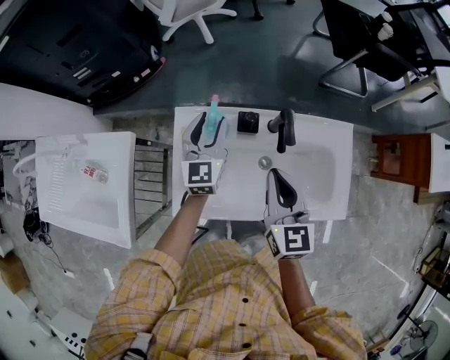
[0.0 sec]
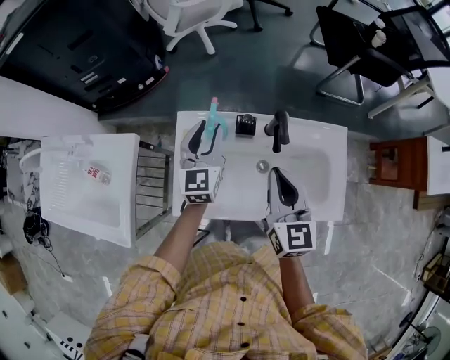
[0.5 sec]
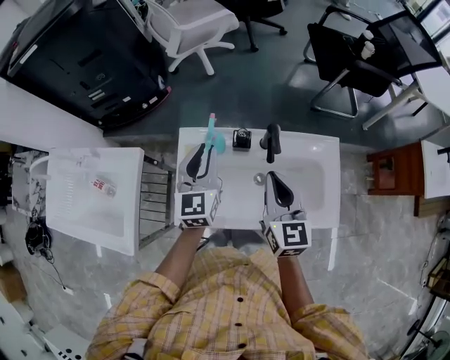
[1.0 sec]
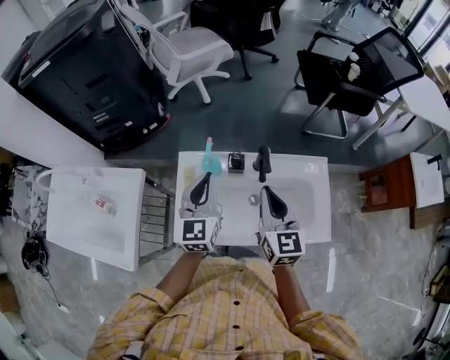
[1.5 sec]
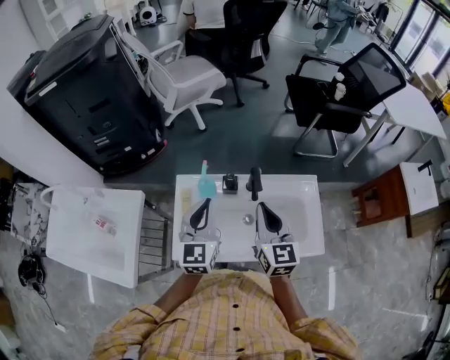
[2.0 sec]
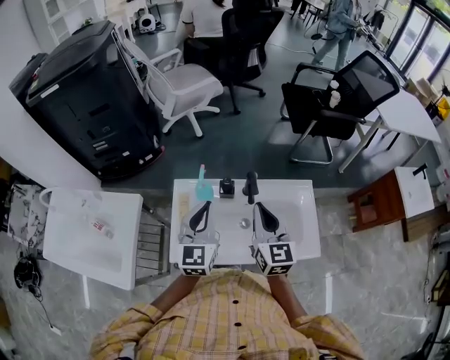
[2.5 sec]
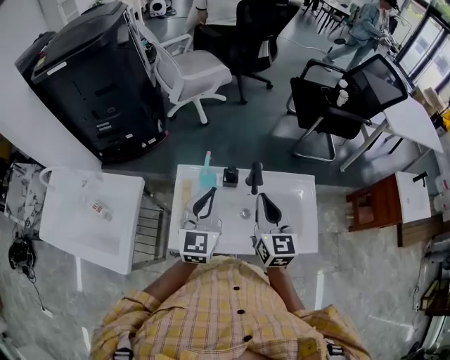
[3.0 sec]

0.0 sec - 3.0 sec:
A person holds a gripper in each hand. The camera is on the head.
0.0 sec - 1.5 sec: The right gripper is displaced upward by approximately 5 cm, while the left gripper is displaced upward and backward by approximately 15 cm, and closes up.
1.5 sec - 3.0 sec: The left gripper shifts by approximately 5 cm.

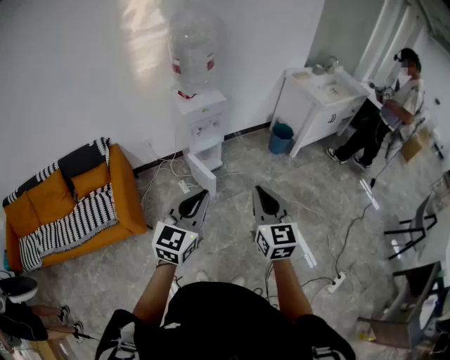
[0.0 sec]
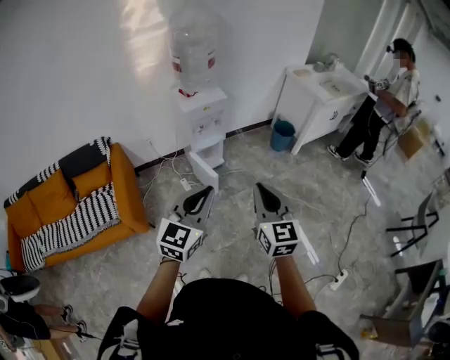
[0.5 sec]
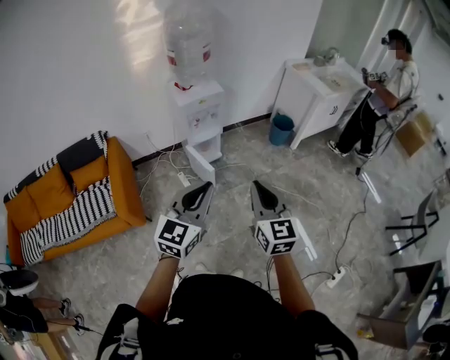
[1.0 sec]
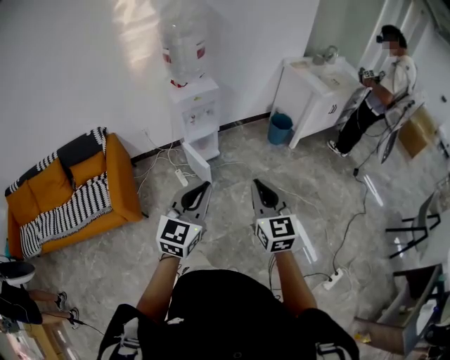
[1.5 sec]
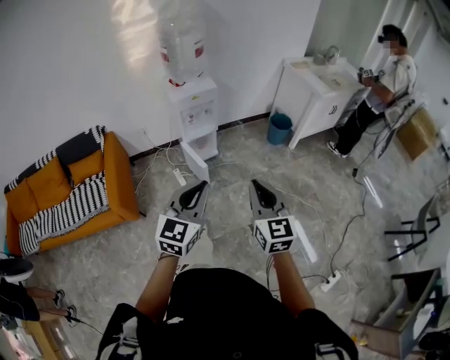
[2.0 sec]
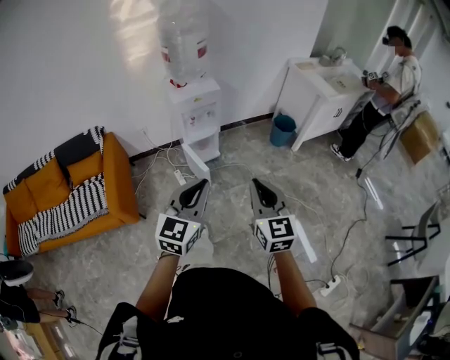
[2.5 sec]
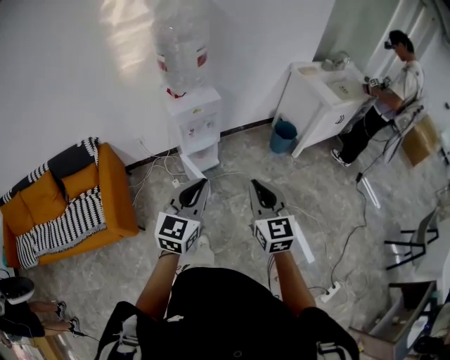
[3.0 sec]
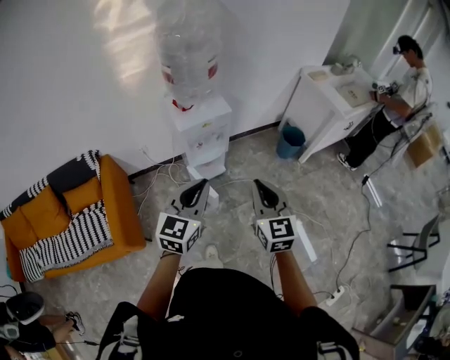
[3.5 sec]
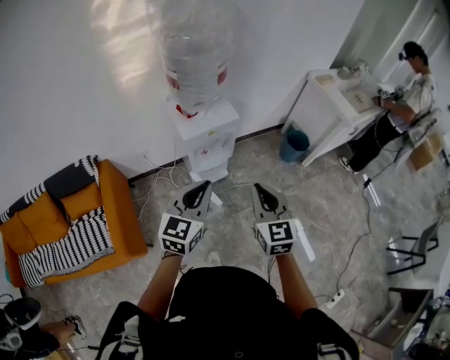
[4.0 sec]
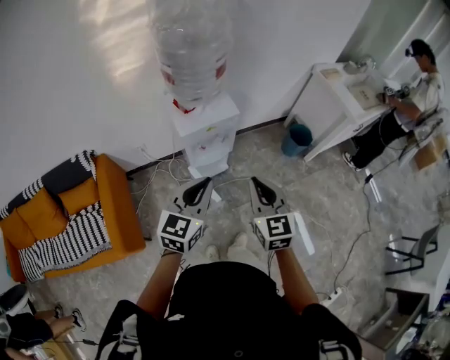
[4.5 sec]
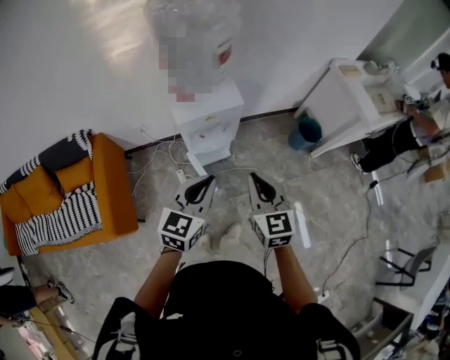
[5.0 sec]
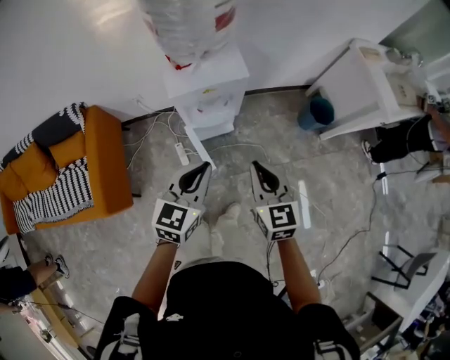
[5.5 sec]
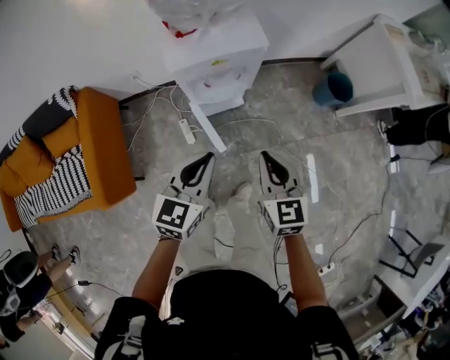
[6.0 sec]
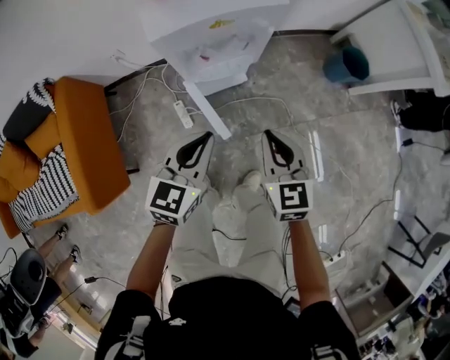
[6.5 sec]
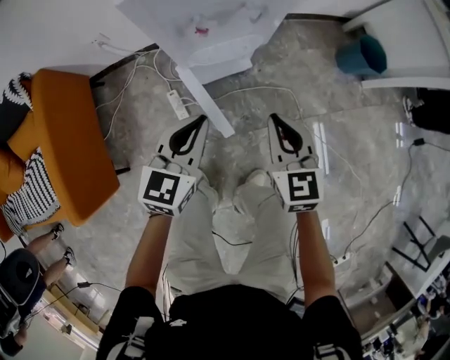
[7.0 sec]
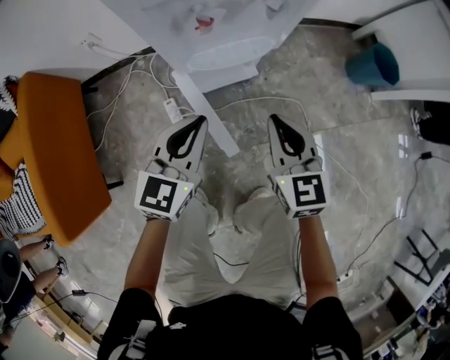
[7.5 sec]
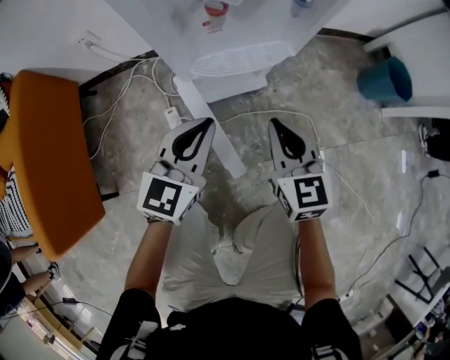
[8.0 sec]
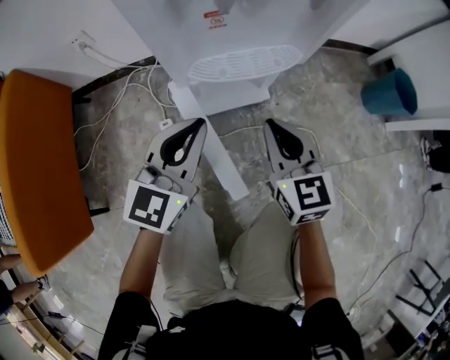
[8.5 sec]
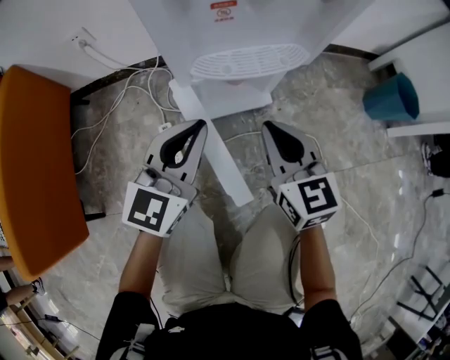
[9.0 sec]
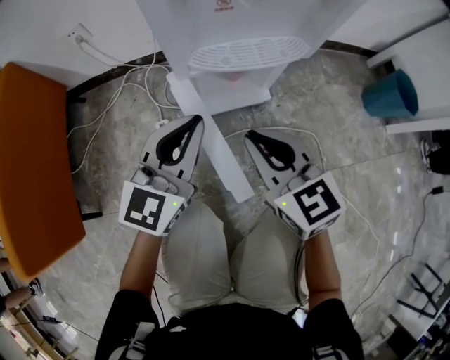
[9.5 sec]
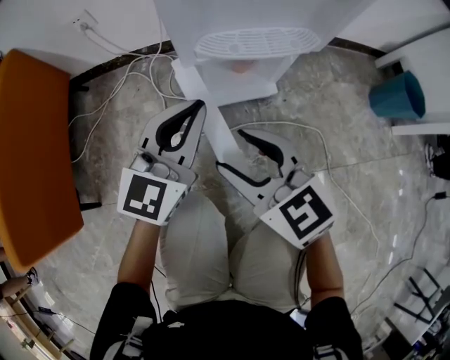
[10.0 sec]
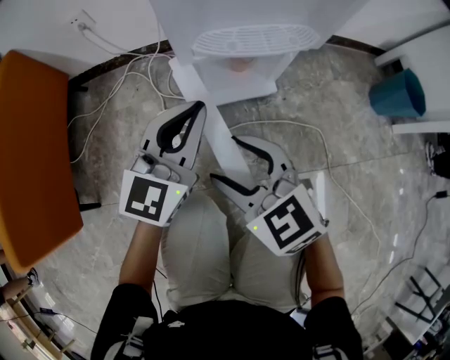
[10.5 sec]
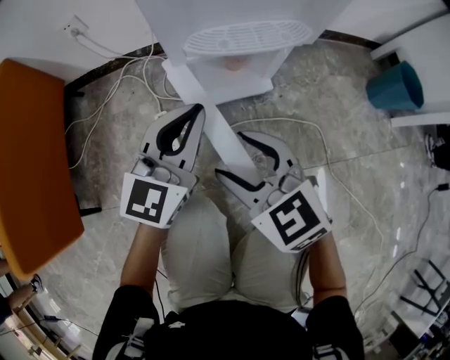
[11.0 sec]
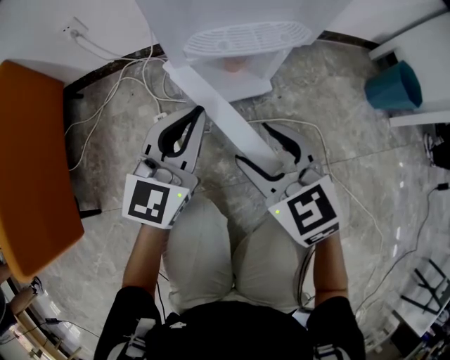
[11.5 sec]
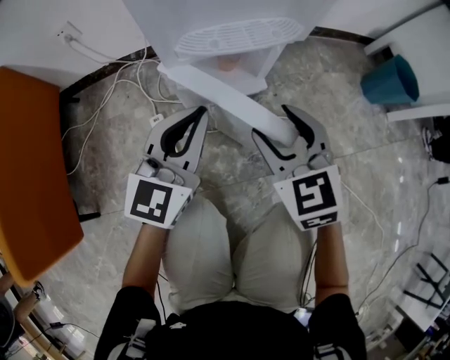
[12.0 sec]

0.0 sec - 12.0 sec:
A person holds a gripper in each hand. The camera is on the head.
0.0 sec - 2.0 sec: Both grippers travel together to the right, some 10 cm.
2.0 sec - 4.0 sec: Both grippers move forward and to the left, roughly 35 cm.
4.0 sec - 6.0 sec: The right gripper heads downward and forward, covering some 25 cm. The left gripper is displaced downward by about 20 cm.
6.0 sec - 8.0 sec: The grippers both shift downward by about 40 cm.
8.0 sec - 10.0 sec: The left gripper ends up roughly 5 cm from where it was. Meanwhile the right gripper shifts about 10 cm to the left, swivels about 30 degrees, and opens up.
10.0 sec - 12.0 sec: The right gripper goes about 10 cm to the right, and turns by some 30 degrees.

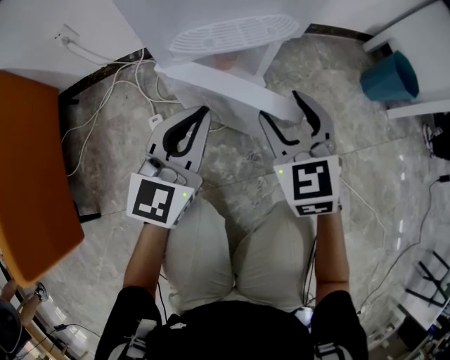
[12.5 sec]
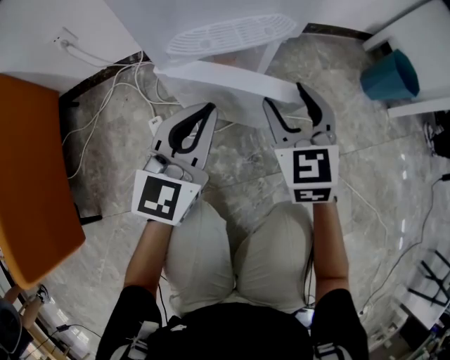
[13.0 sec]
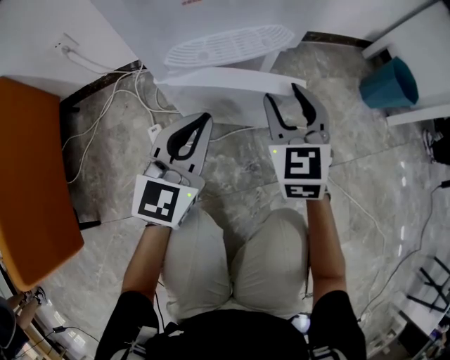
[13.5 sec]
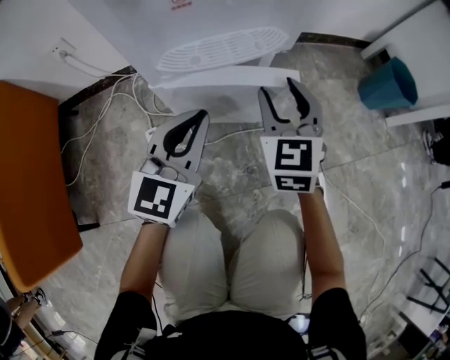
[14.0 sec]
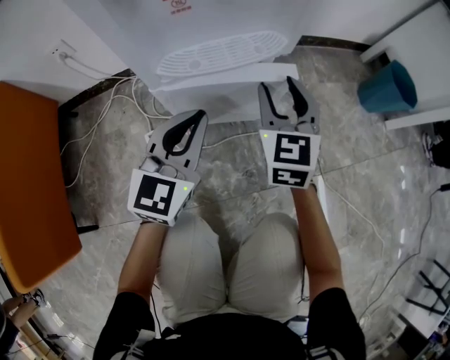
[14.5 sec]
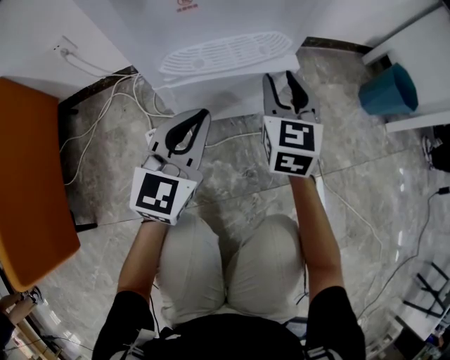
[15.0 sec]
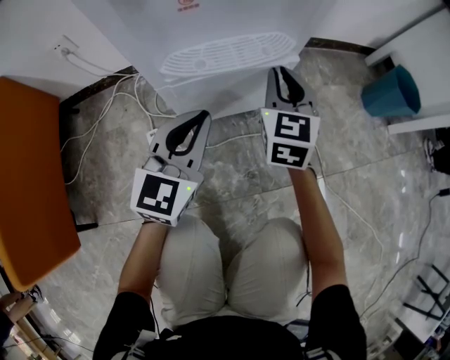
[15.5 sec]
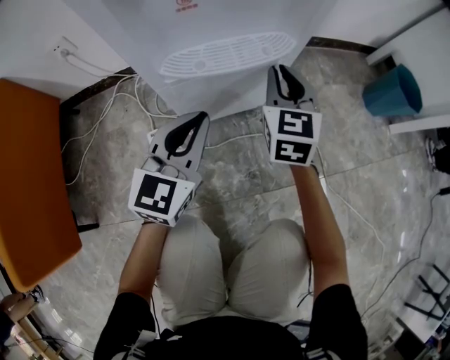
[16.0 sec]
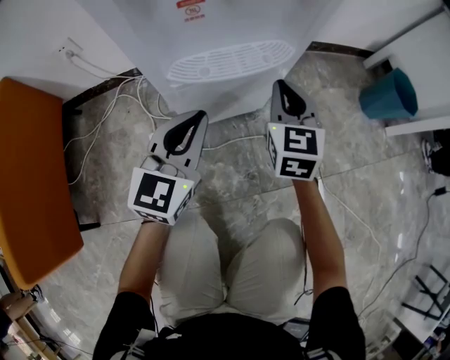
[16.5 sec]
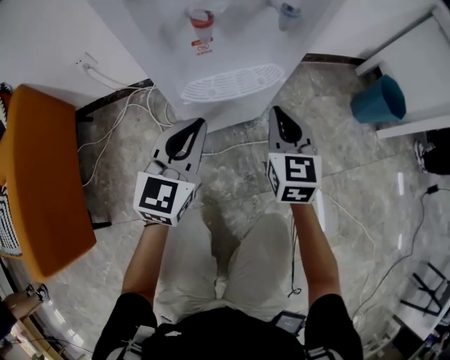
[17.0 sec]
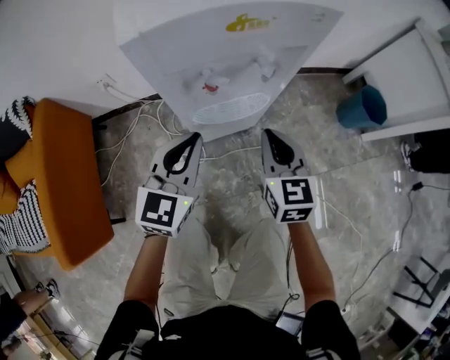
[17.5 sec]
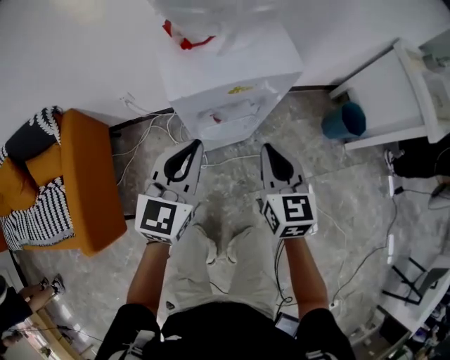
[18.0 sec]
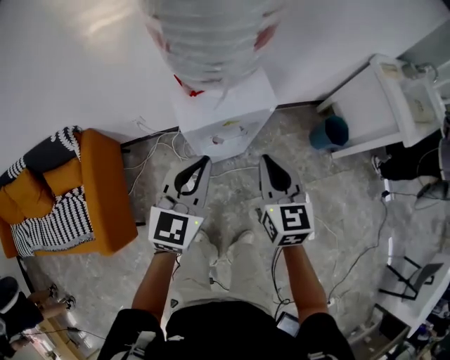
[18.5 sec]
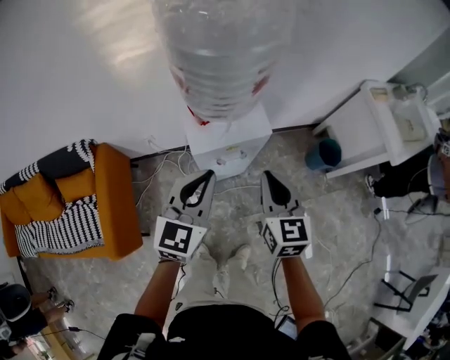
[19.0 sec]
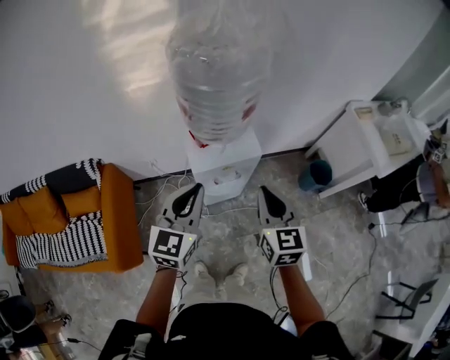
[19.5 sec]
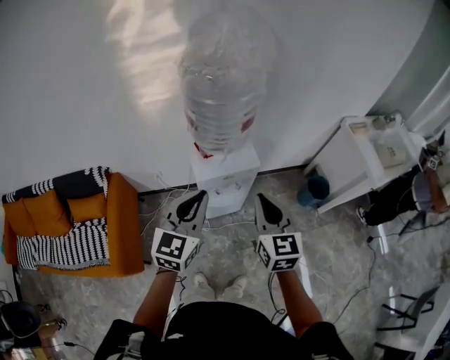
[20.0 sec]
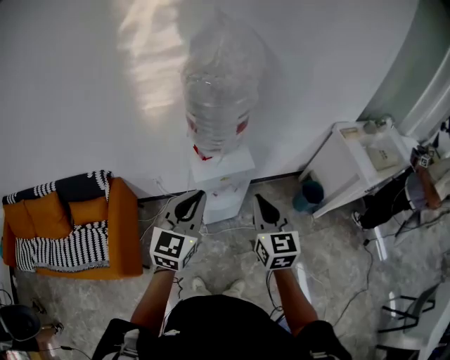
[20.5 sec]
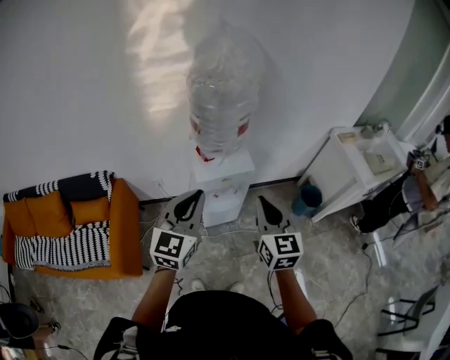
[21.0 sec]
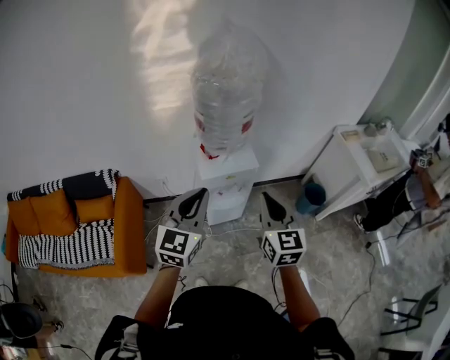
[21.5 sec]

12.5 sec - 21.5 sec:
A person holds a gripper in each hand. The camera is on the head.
12.5 sec - 14.5 sec: The right gripper moves forward, some 10 cm.
14.5 sec - 17.0 sec: The left gripper goes about 5 cm upward. Meanwhile the right gripper ends up about 5 cm from where it was, and closes up.
17.0 sec - 19.5 sec: Both grippers move upward, about 60 cm.
19.5 sec - 21.5 sec: Both grippers move backward and upward, some 15 cm.

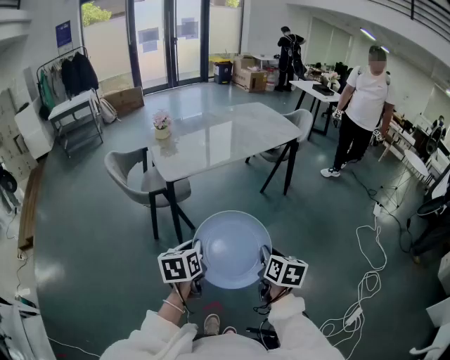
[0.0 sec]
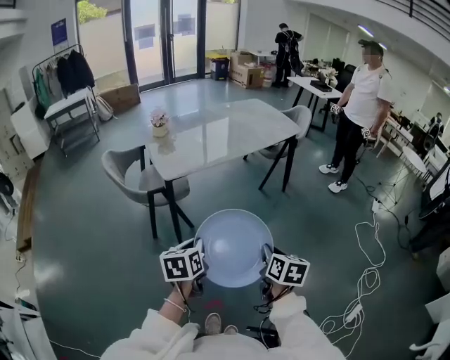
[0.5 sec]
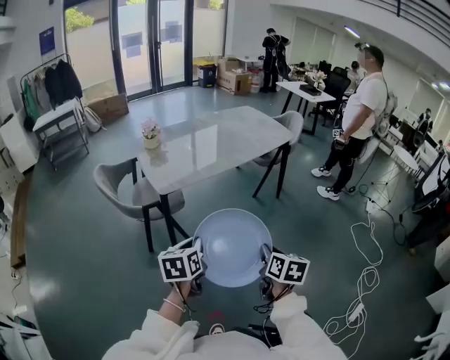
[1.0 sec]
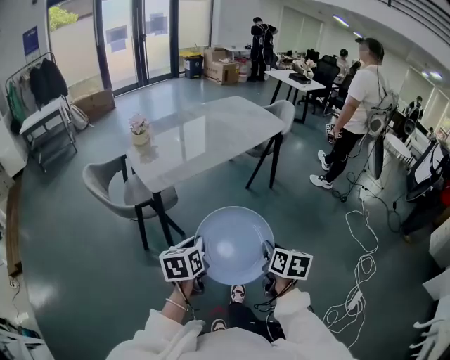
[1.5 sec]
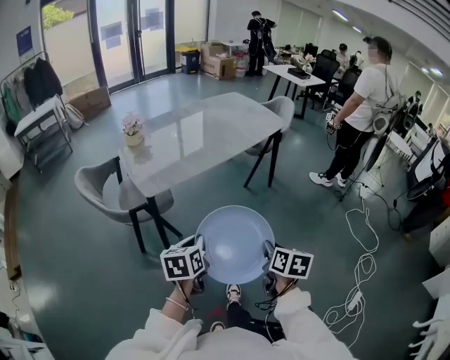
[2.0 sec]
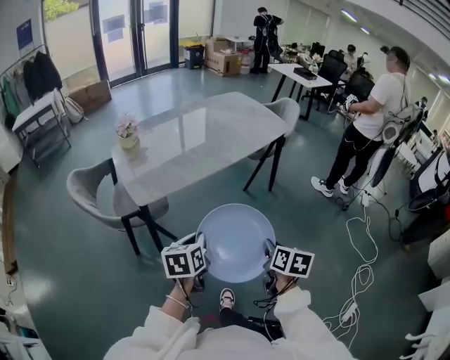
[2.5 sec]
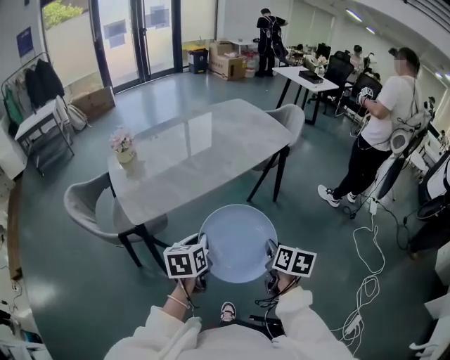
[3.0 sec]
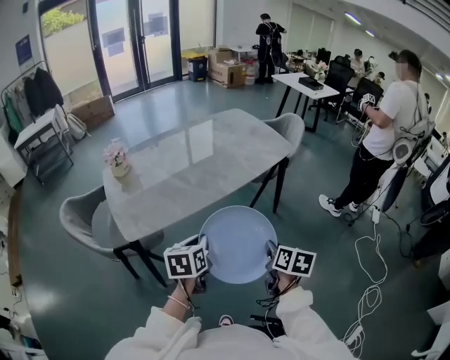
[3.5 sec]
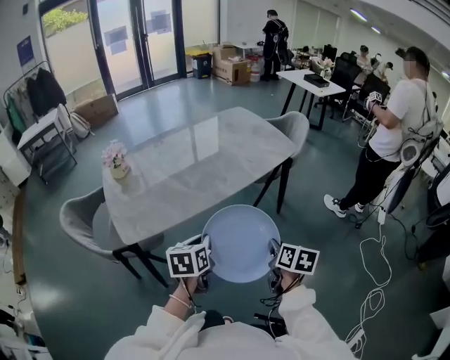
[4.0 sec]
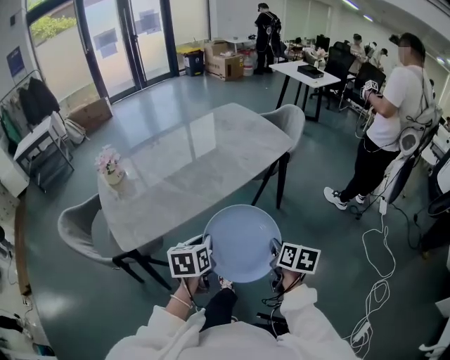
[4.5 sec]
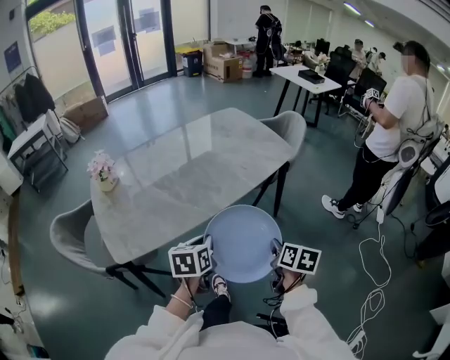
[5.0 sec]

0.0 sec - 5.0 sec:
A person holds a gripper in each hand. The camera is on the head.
0.0 sec - 2.5 sec: Both grippers move forward, approximately 20 cm.
2.5 sec - 5.0 sec: The grippers both shift forward by approximately 30 cm.
